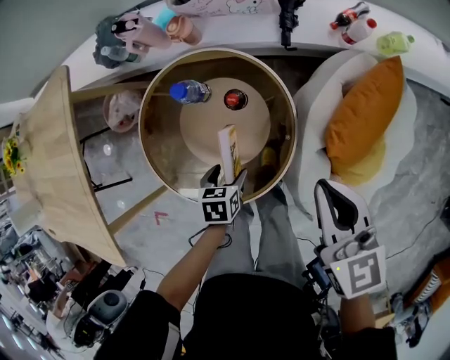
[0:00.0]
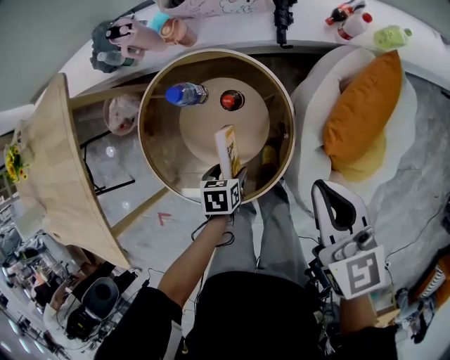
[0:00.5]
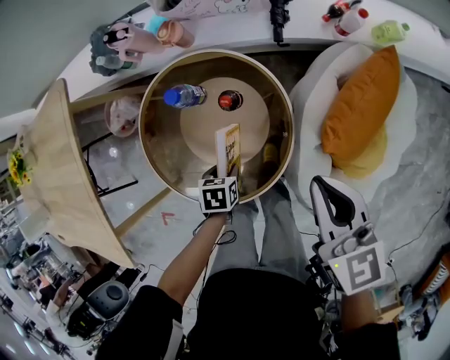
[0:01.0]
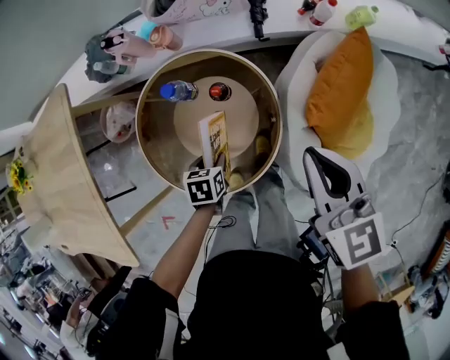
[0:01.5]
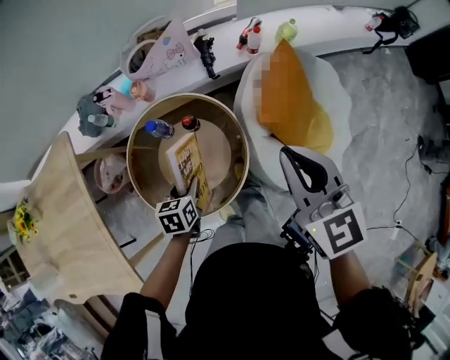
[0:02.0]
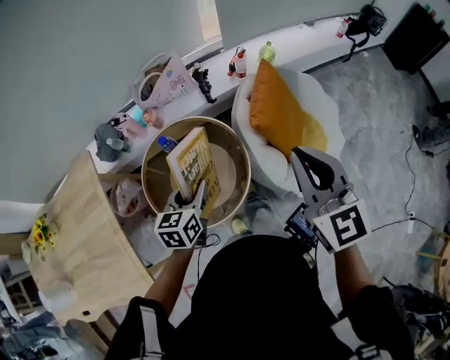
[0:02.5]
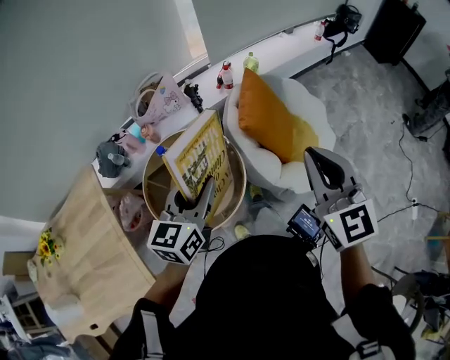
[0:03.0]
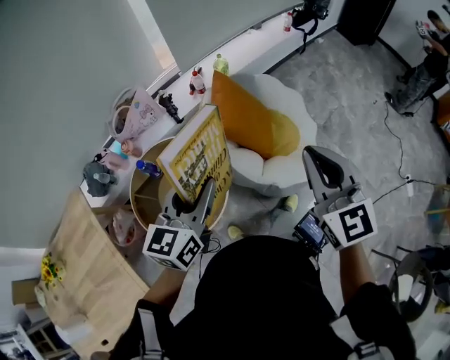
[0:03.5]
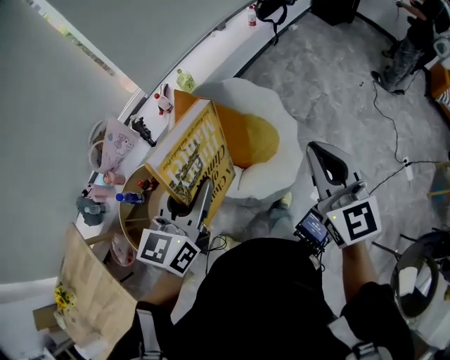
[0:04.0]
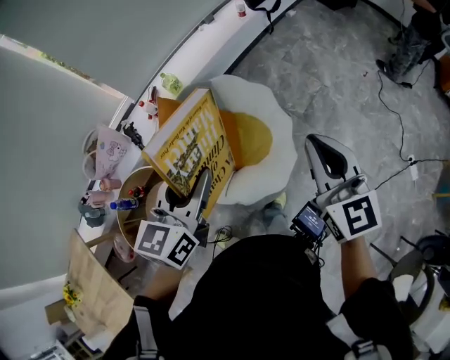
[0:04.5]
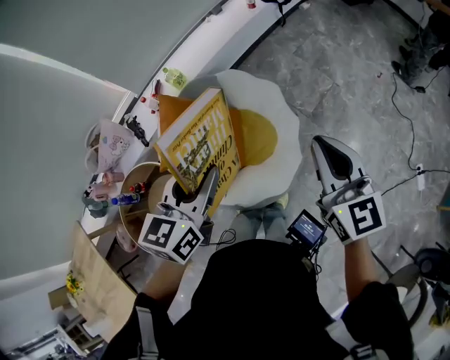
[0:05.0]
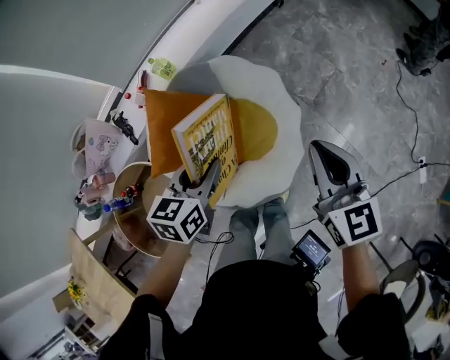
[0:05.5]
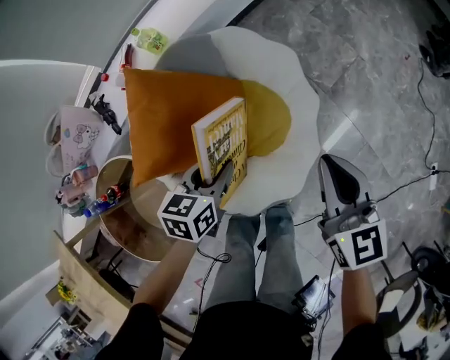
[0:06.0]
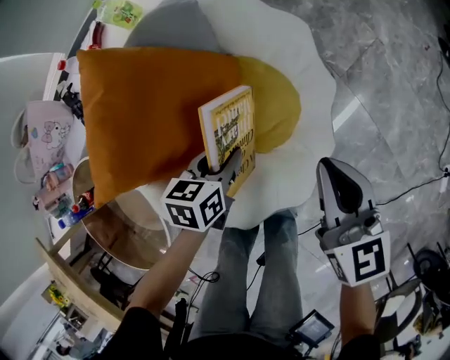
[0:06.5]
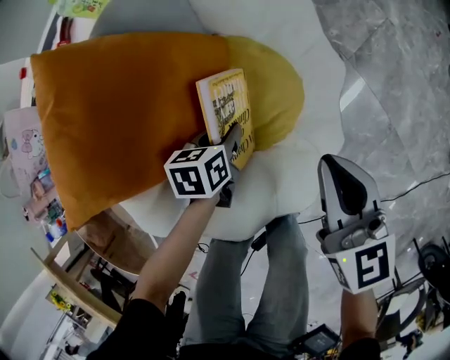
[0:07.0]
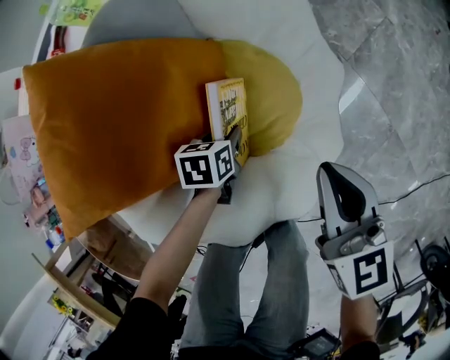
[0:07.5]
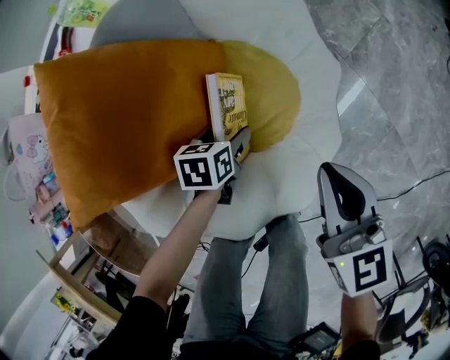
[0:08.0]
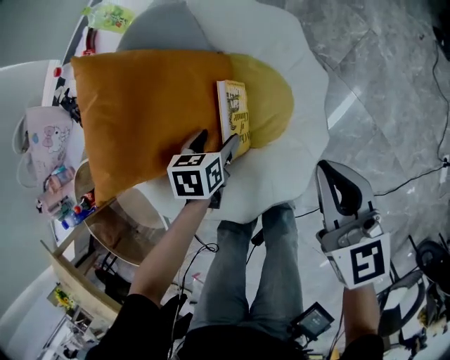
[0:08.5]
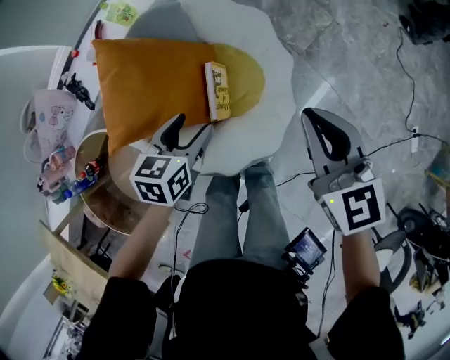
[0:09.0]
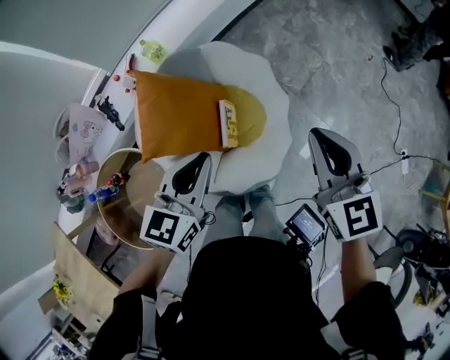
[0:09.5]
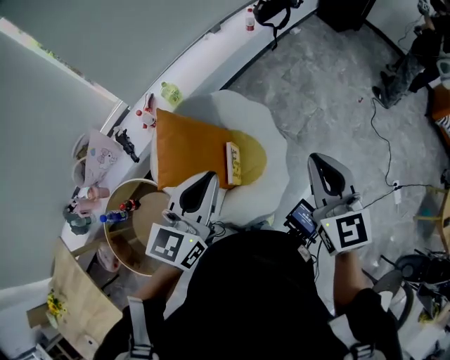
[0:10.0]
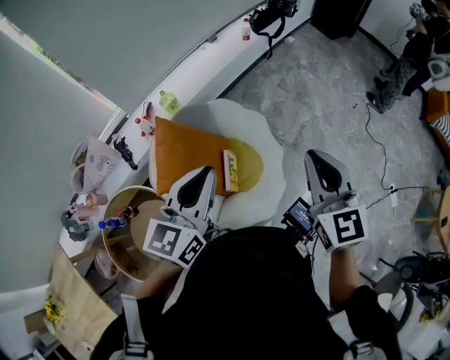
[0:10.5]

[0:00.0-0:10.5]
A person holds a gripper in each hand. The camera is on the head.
0:00.0 to 0:02.0: Both grippers move upward, approximately 20 cm. The left gripper rotates roughly 20 degrees, and closes, while the right gripper swivels some 30 degrees.
0:02.0 to 0:04.0: The right gripper ends up some 40 cm from where it was, and turns by about 30 degrees; the left gripper changes place by approximately 50 cm, and tilts its fingers about 40 degrees upward.
0:04.0 to 0:06.5: Both grippers travel together downward and forward, about 60 cm. The left gripper tips its fingers downward by roughly 40 degrees. Meanwhile the right gripper swivels about 30 degrees.
0:06.5 to 0:08.5: The left gripper reaches roughly 20 cm downward, then returns, and opens its fingers, while the right gripper reaches approximately 10 cm downward, then returns.
0:08.5 to 0:10.5: Both grippers travel together upward, some 50 cm. The right gripper turns by roughly 30 degrees. Meanwhile the left gripper angles its fingers upward, by some 50 degrees, and closes up.

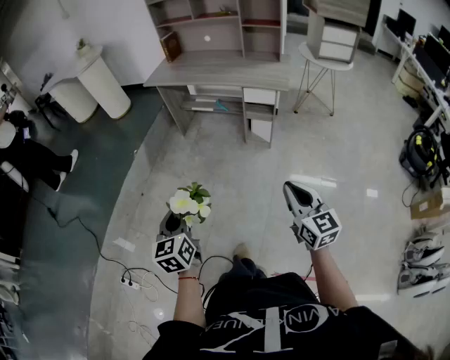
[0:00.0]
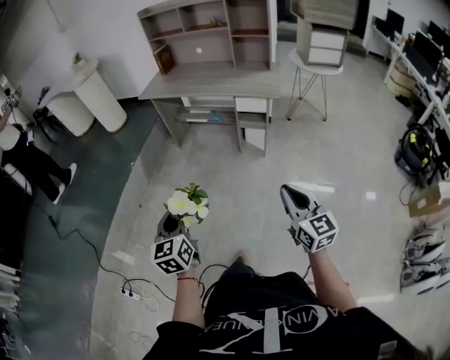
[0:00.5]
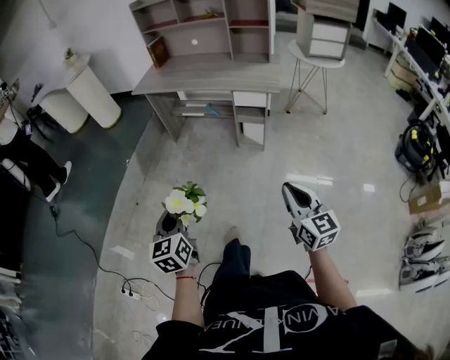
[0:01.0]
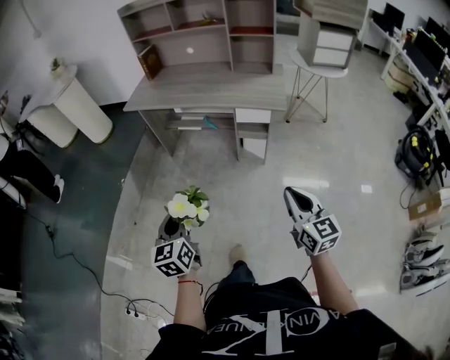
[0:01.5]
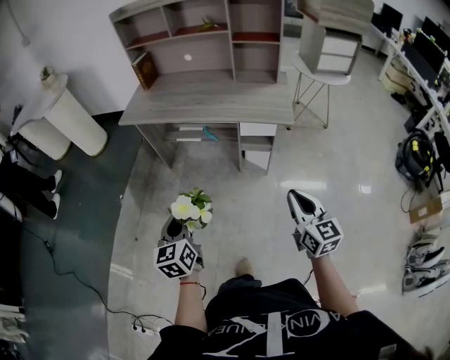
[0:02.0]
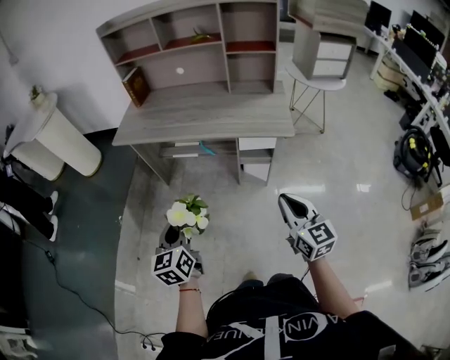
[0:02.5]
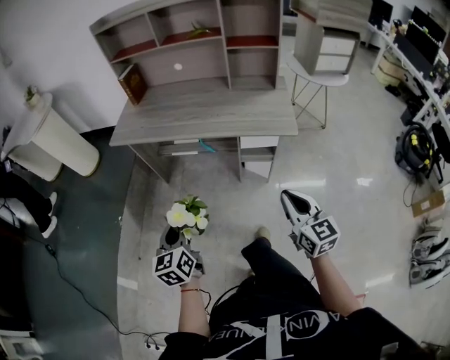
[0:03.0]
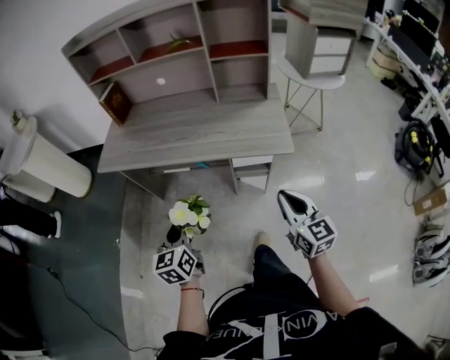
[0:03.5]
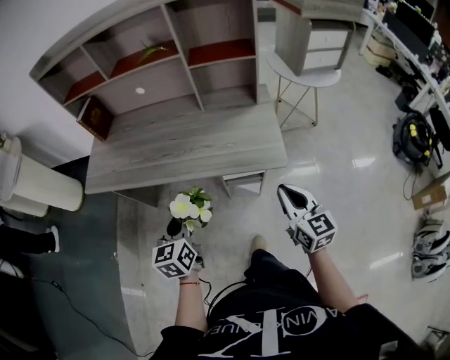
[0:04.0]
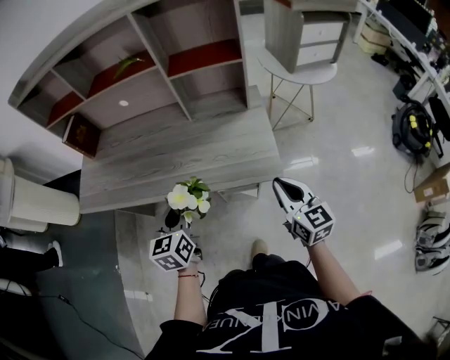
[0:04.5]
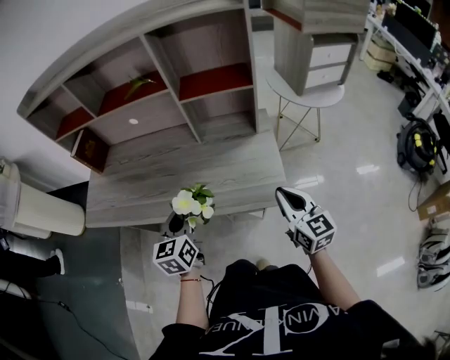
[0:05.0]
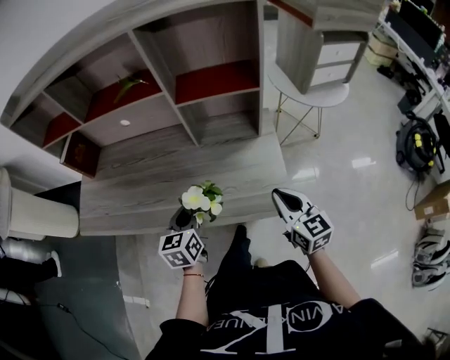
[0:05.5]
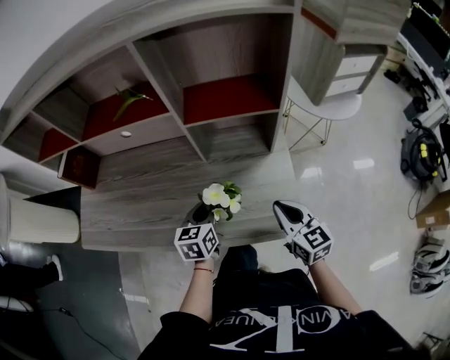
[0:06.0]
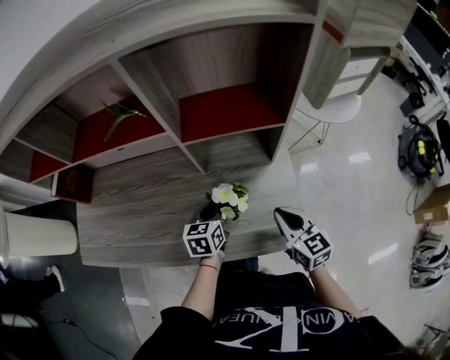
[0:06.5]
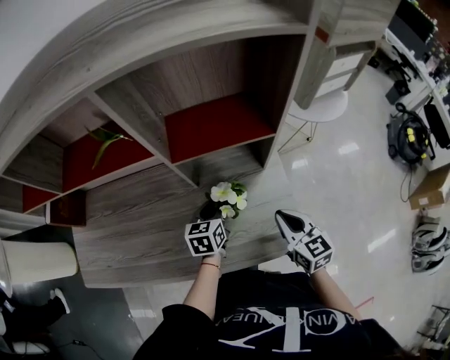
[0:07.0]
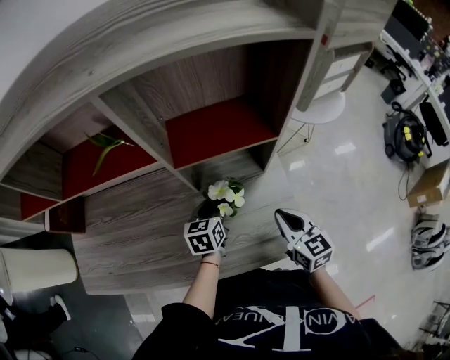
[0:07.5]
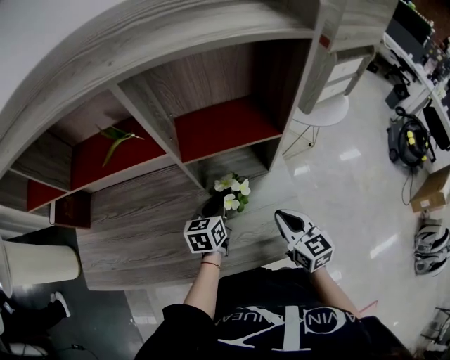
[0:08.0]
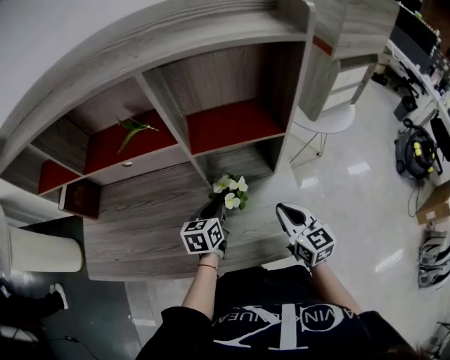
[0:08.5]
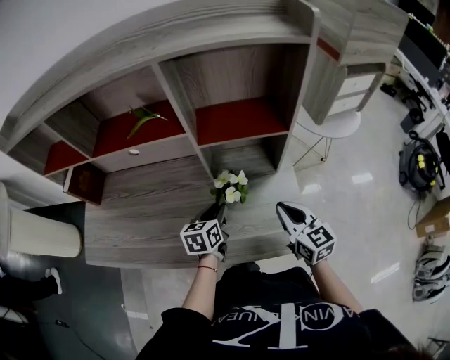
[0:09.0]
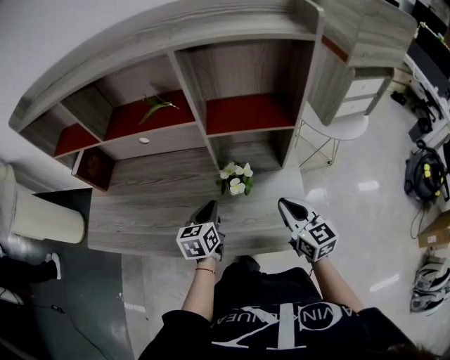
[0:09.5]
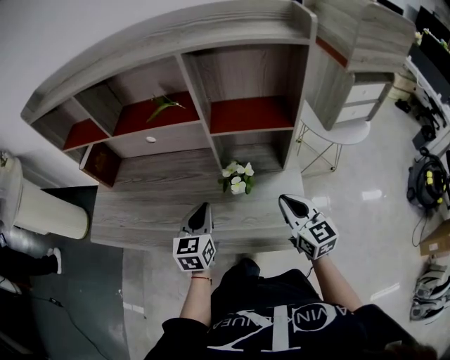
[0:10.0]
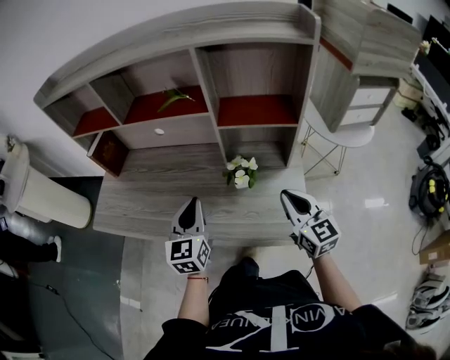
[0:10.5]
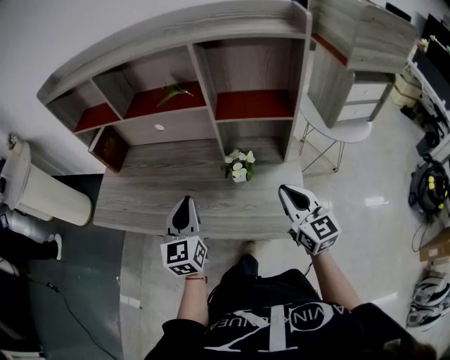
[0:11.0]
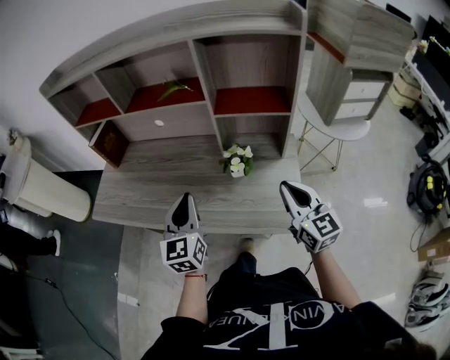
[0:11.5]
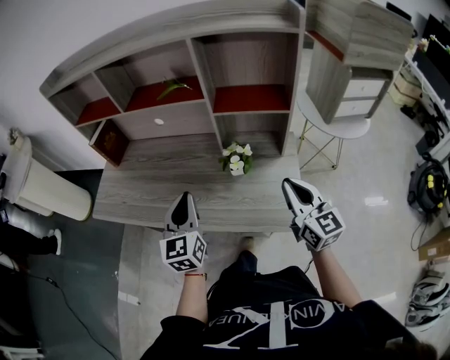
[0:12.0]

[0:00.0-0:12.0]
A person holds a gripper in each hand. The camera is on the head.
0:00.0 to 0:02.0: The grippers both shift forward by approximately 30 cm.
0:02.0 to 0:04.0: The left gripper is displaced forward and to the right by some 35 cm; the right gripper goes roughly 30 cm forward.
0:04.0 to 0:06.0: The right gripper goes roughly 25 cm forward. The left gripper travels forward and to the right by some 30 cm.
0:06.0 to 0:08.0: The left gripper travels forward by about 10 cm.
0:08.0 to 0:10.0: The left gripper is displaced backward, upward and to the left by some 20 cm, and swivels approximately 30 degrees; the right gripper moves upward, some 5 cm.
0:10.0 to 0:12.0: The grippers both shift upward and backward by some 10 cm.

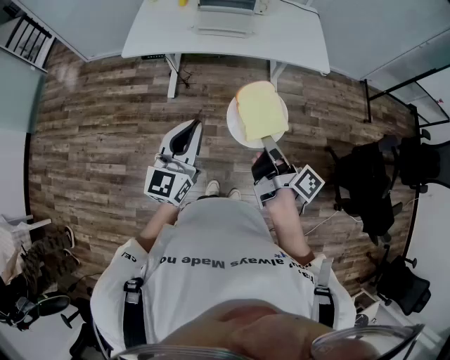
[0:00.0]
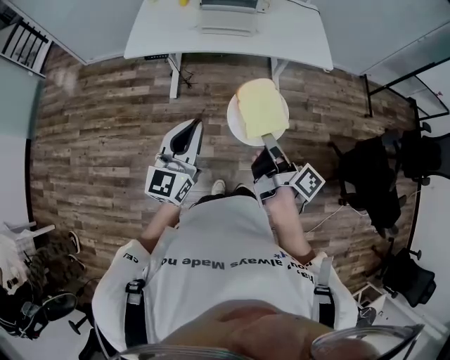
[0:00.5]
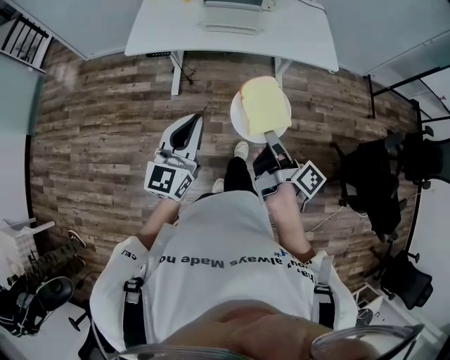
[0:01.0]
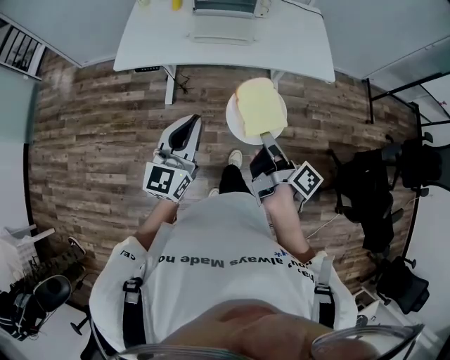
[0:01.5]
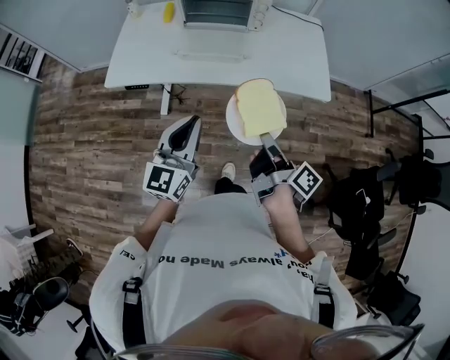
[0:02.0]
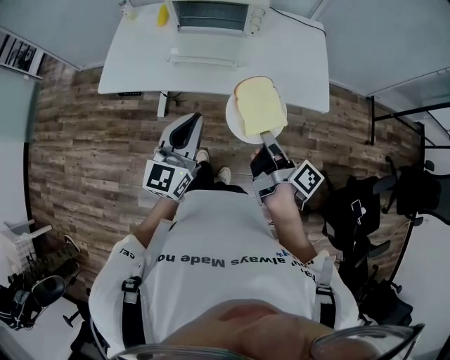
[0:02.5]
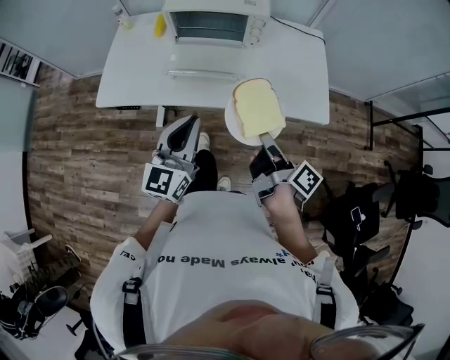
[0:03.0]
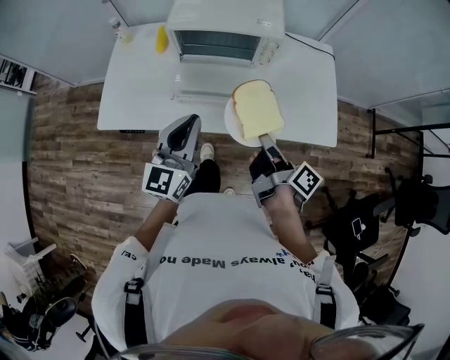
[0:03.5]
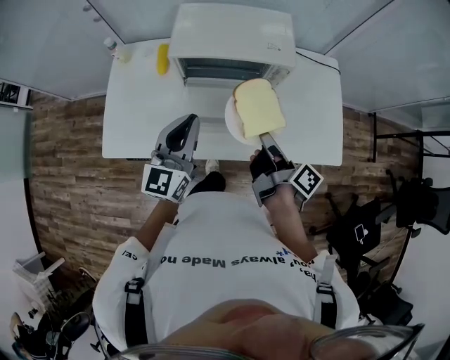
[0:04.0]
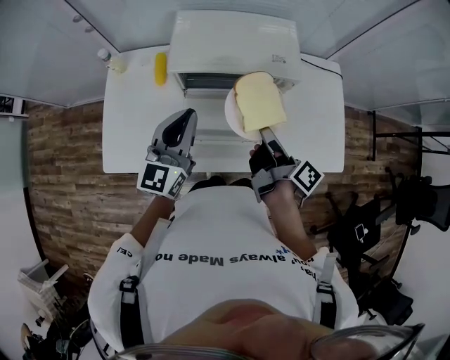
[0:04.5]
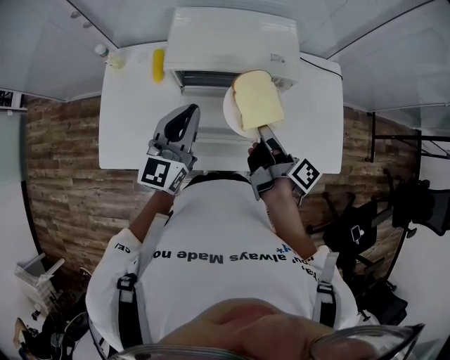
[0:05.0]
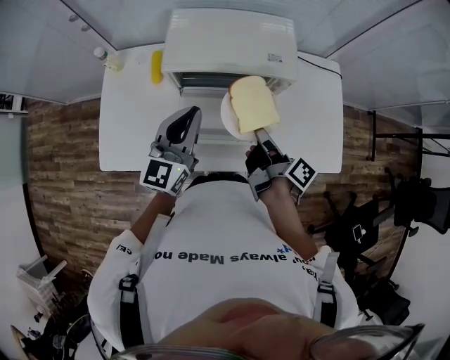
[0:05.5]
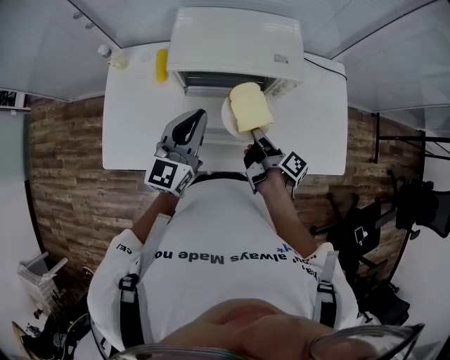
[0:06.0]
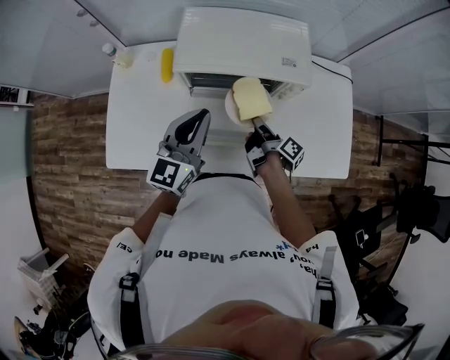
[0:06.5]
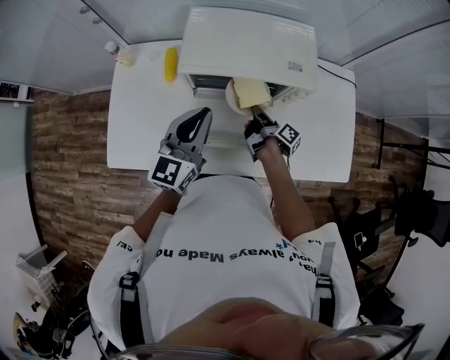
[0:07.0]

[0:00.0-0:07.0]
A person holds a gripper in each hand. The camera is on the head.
0:00.0 to 0:02.0: The left gripper shifts by approximately 25 cm.
0:02.0 to 0:03.5: The left gripper changes place by approximately 25 cm.
0:03.5 to 0:05.0: The left gripper shifts by approximately 20 cm.
